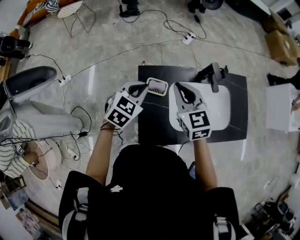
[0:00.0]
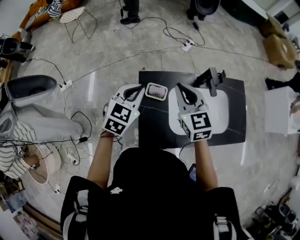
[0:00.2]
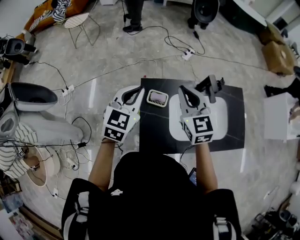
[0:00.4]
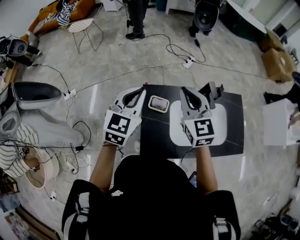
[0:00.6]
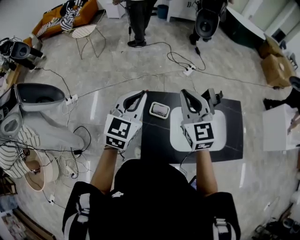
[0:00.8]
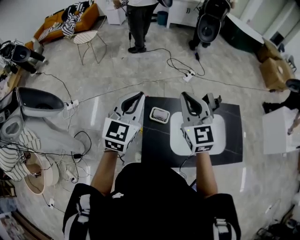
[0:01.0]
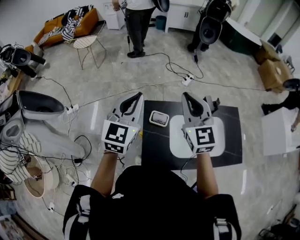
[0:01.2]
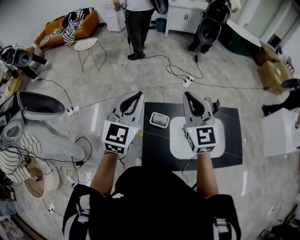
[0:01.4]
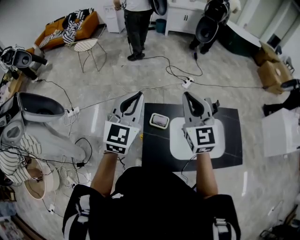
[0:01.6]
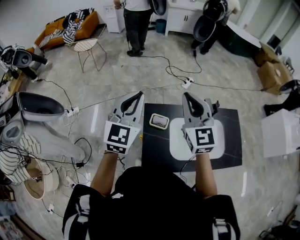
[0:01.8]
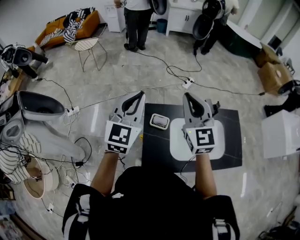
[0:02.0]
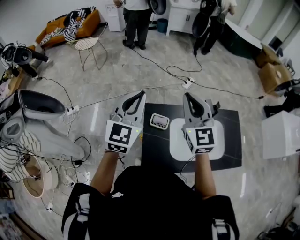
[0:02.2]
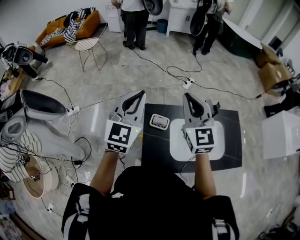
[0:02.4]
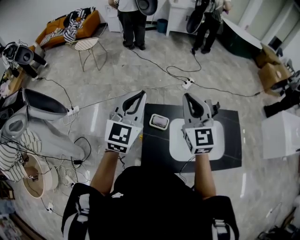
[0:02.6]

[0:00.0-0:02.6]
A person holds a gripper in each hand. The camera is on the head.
0:00.0 to 0:01.2: The grippers both shift upward by roughly 20 cm. The right gripper rotates roughly 20 degrees, while the left gripper angles its fingers upward, by approximately 30 degrees.
0:01.2 to 0:02.6: The grippers move only a little.

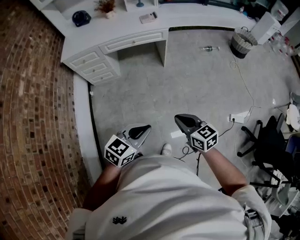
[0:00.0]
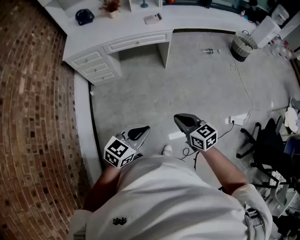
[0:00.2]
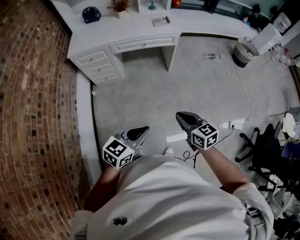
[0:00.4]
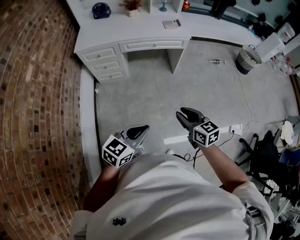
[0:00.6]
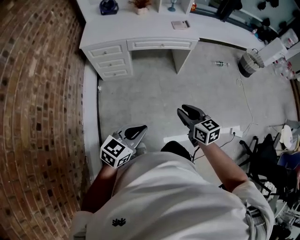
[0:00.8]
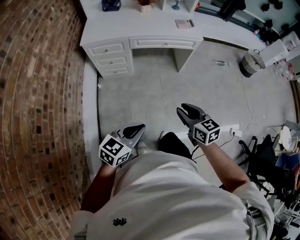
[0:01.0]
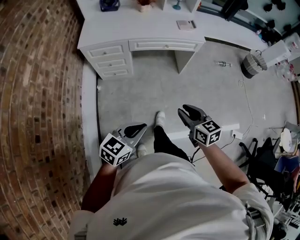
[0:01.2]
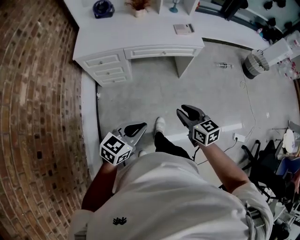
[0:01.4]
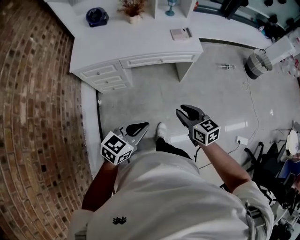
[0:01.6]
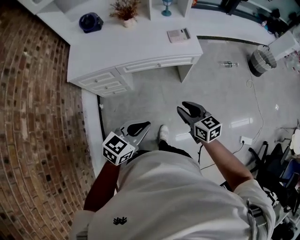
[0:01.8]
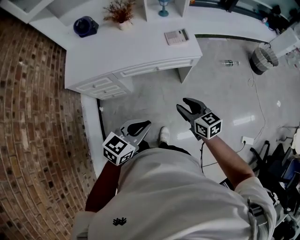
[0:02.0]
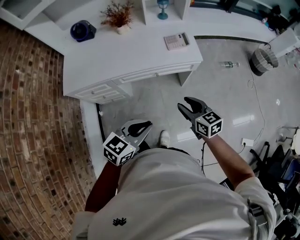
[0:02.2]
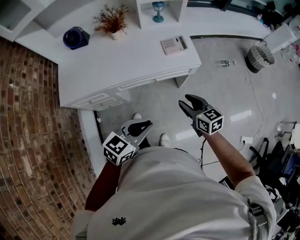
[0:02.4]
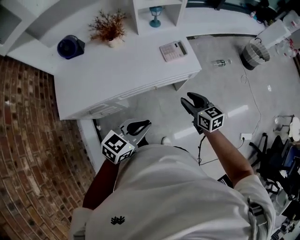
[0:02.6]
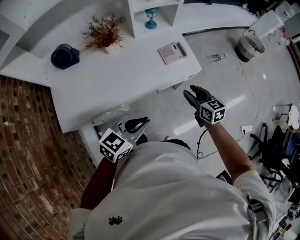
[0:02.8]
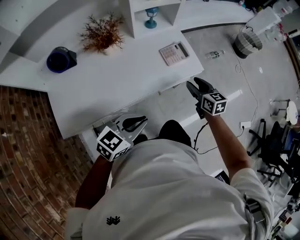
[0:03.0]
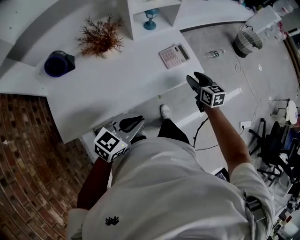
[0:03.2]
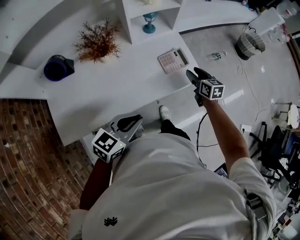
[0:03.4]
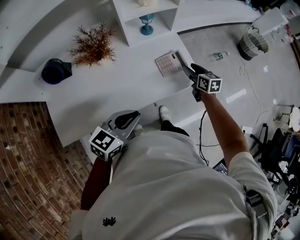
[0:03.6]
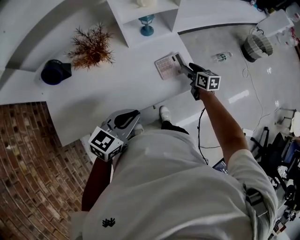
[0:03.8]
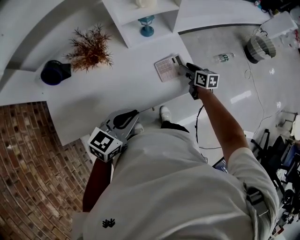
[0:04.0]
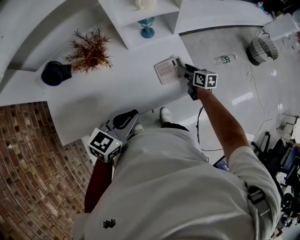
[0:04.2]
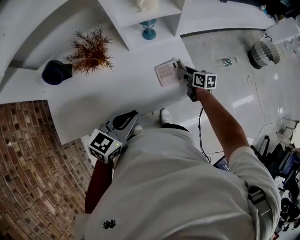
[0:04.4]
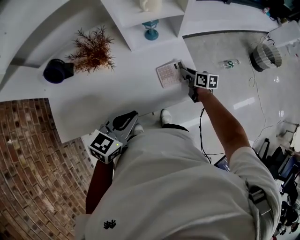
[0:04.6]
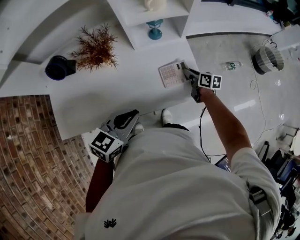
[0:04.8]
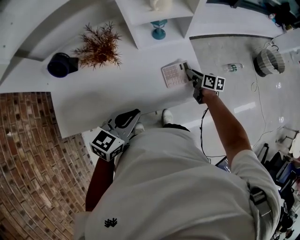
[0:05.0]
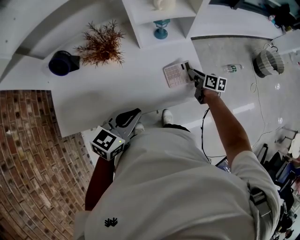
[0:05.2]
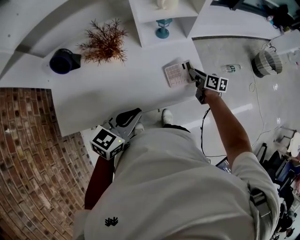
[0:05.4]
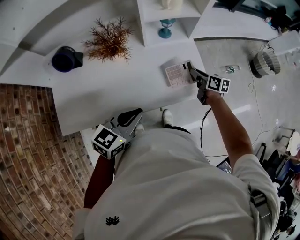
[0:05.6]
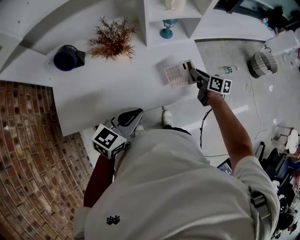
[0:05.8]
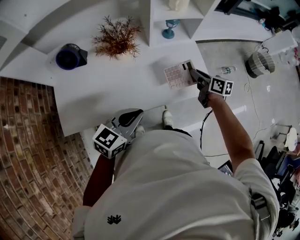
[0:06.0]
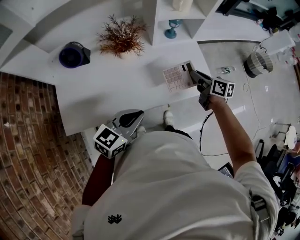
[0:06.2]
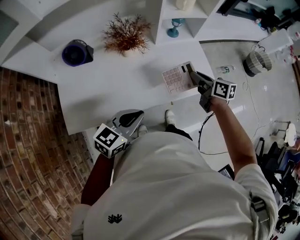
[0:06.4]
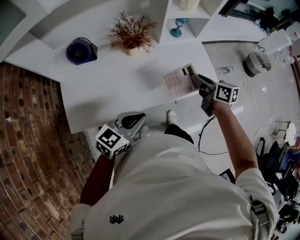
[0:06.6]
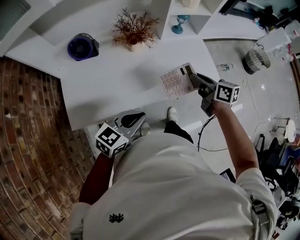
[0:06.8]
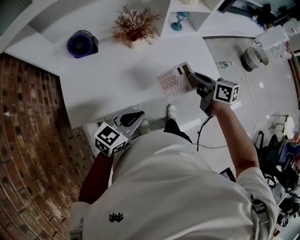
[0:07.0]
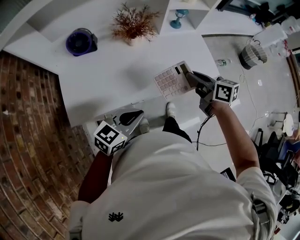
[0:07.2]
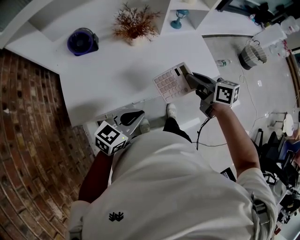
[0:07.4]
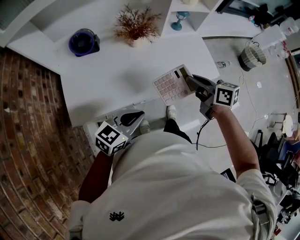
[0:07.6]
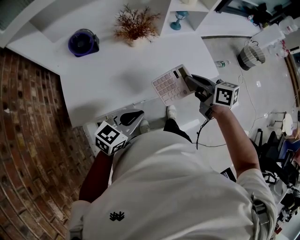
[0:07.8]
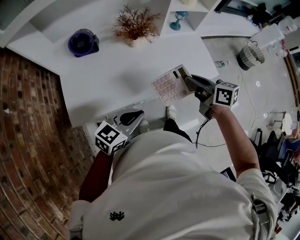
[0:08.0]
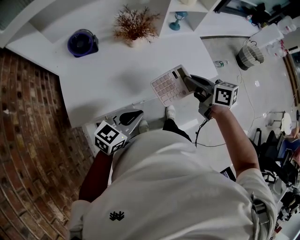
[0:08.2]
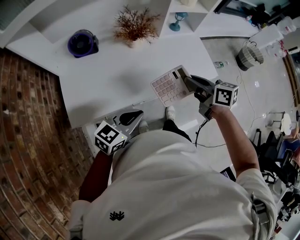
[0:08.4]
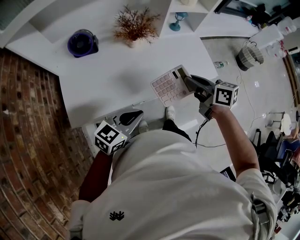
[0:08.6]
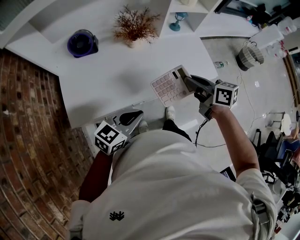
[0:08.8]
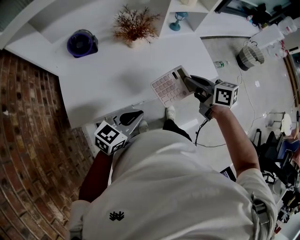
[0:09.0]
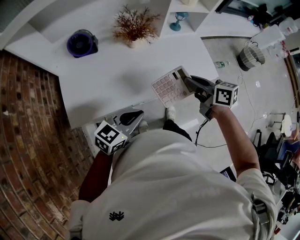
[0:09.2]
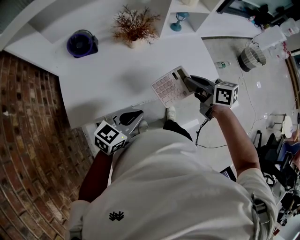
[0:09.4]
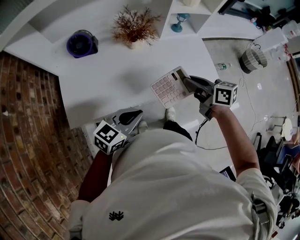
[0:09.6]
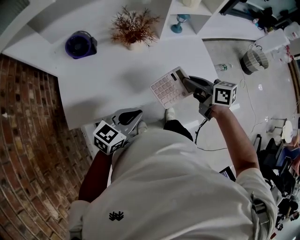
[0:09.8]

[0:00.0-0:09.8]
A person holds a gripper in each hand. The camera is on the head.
0:00.0 to 0:01.4: The two grippers go approximately 30 cm to the left and forward. The right gripper opens.
0:01.4 to 0:02.8: The two grippers travel together, forward, about 40 cm.
0:02.8 to 0:04.2: The two grippers go approximately 25 cm forward.
0:04.2 to 0:05.6: The right gripper ends up roughly 5 cm from where it was, and closes up.
0:05.6 to 0:07.0: The left gripper is displaced backward and to the left by some 20 cm. The right gripper is displaced backward, to the left and upward by roughly 30 cm.
0:07.0 to 0:08.4: The right gripper ends up some 5 cm from where it was.
0:08.4 to 0:09.8: The grippers make only small movements.

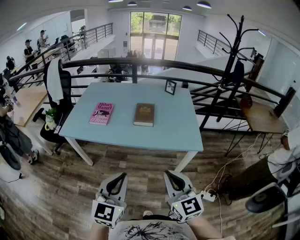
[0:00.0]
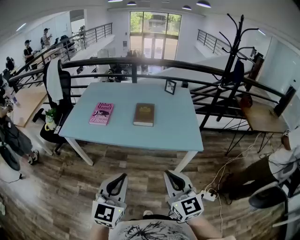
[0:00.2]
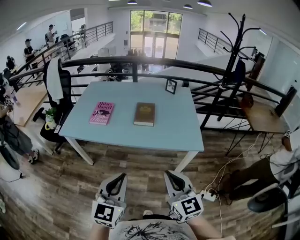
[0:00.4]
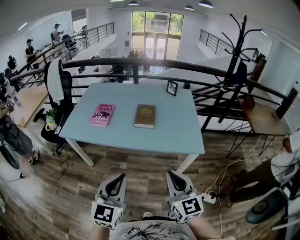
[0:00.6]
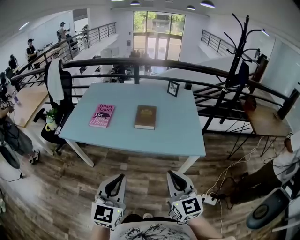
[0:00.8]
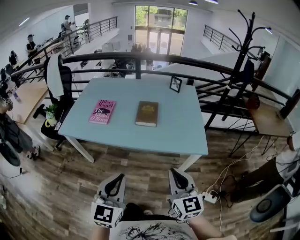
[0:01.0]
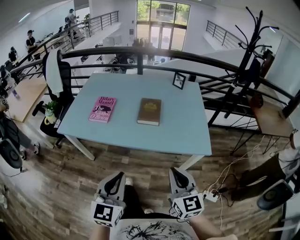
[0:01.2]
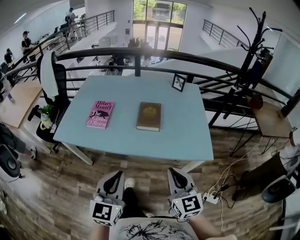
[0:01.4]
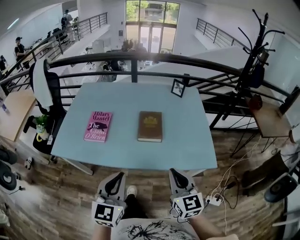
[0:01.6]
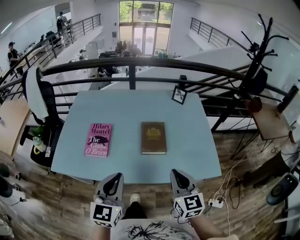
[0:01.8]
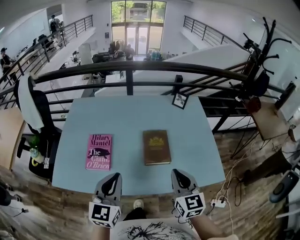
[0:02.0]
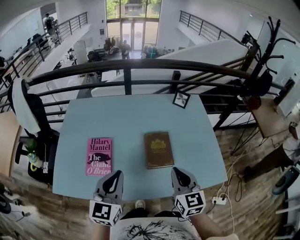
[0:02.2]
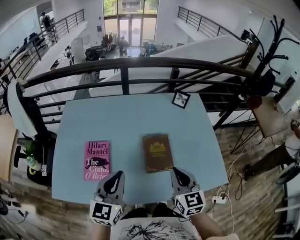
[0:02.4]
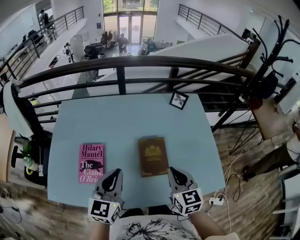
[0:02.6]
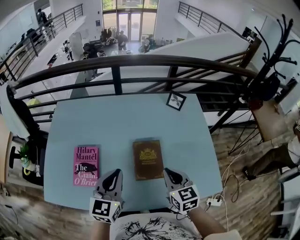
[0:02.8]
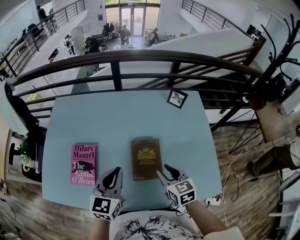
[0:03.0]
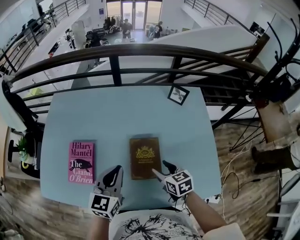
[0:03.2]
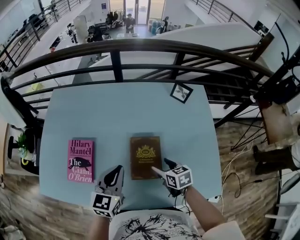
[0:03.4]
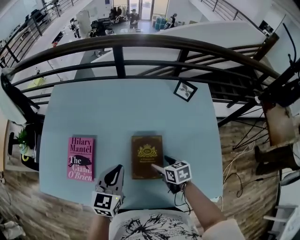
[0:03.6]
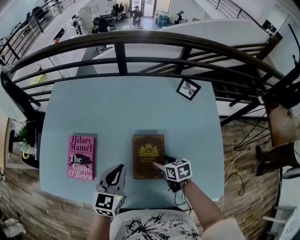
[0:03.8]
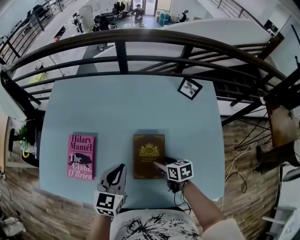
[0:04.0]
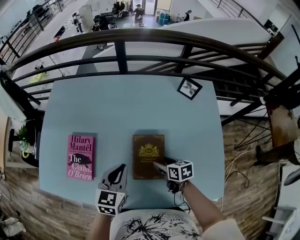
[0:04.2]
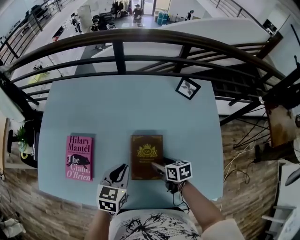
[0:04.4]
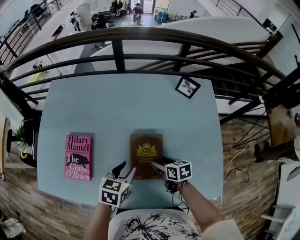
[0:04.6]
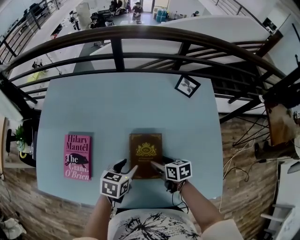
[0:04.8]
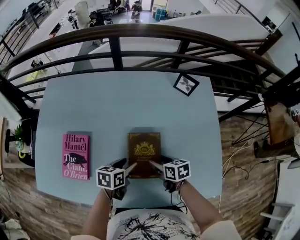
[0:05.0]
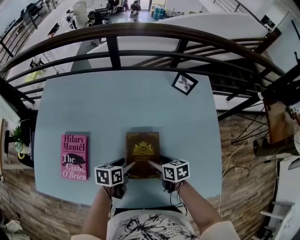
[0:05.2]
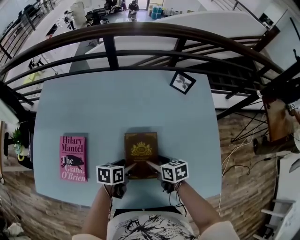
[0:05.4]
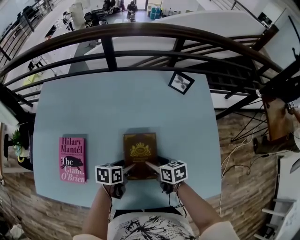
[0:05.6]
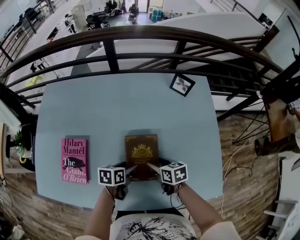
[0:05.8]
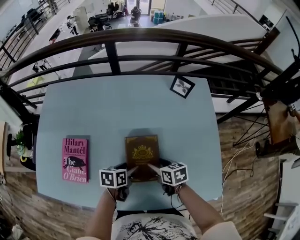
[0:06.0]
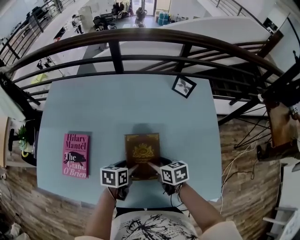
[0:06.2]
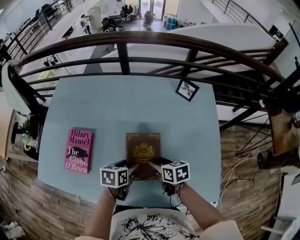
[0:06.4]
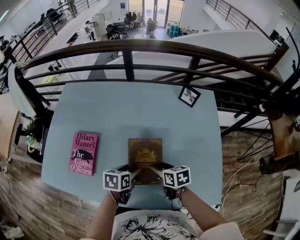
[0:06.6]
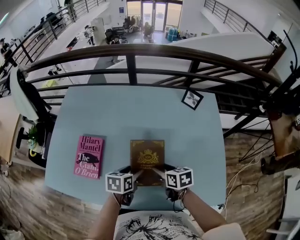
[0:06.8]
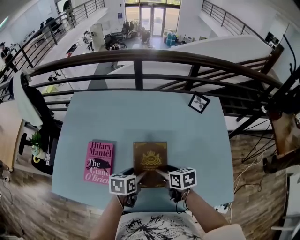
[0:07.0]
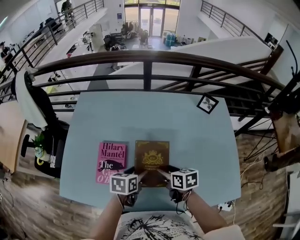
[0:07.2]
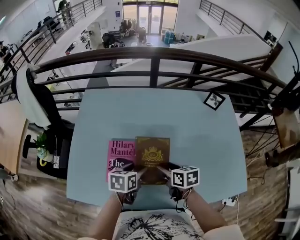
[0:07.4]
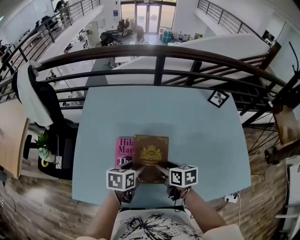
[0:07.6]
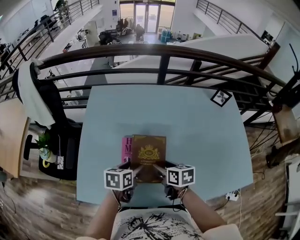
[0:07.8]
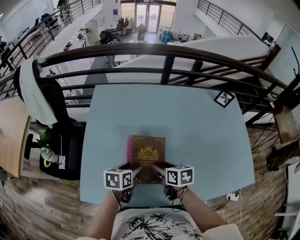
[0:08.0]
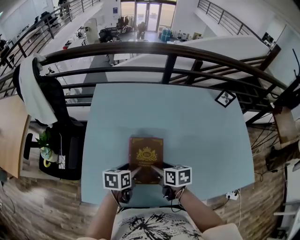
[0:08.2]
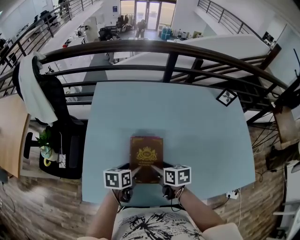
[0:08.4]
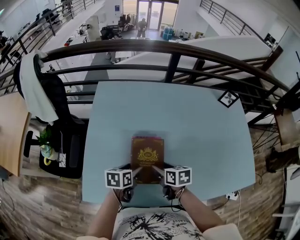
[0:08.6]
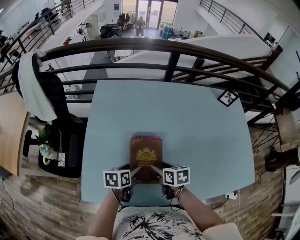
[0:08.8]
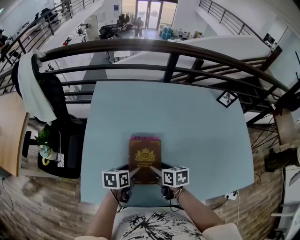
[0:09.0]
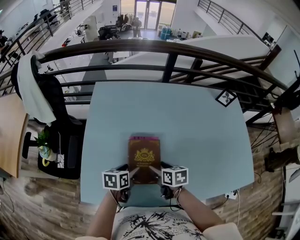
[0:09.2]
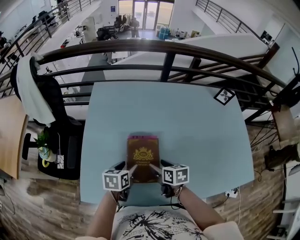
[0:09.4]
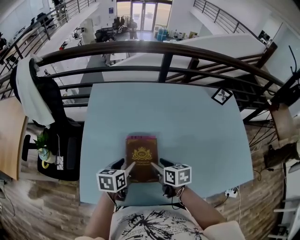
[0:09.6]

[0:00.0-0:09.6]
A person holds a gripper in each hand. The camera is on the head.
0:00.0 to 0:01.6: Both grippers travel together forward, about 25 cm.
0:01.6 to 0:03.2: The right gripper moves forward and downward, about 35 cm, rotates approximately 40 degrees, and opens up, while the left gripper moves forward, roughly 35 cm.
0:03.2 to 0:04.8: The left gripper shifts roughly 15 cm downward, tilts its fingers approximately 30 degrees downward, and opens up, while the right gripper heads downward, covering about 10 cm, and rotates some 20 degrees.
0:06.4 to 0:08.0: The two grippers go some 35 cm to the left.
0:08.0 to 0:09.6: The grippers move only a little.

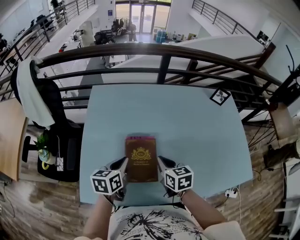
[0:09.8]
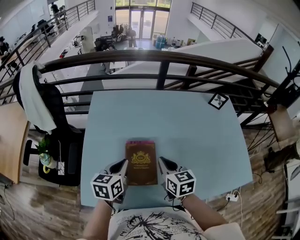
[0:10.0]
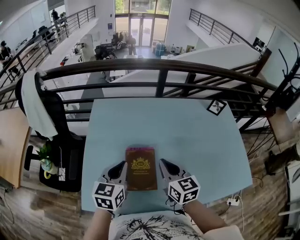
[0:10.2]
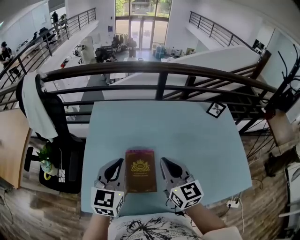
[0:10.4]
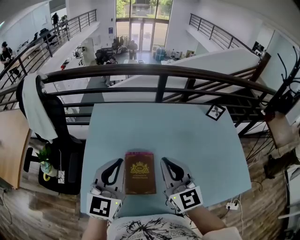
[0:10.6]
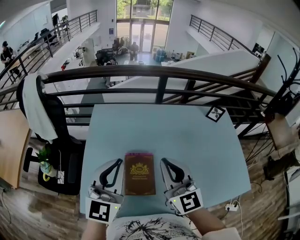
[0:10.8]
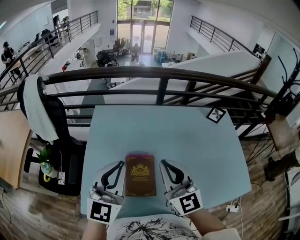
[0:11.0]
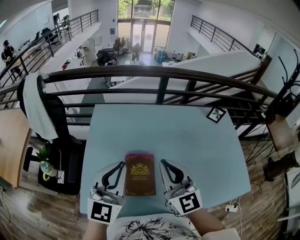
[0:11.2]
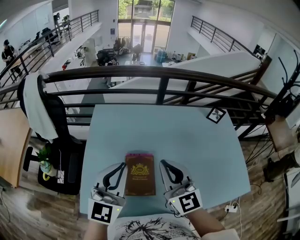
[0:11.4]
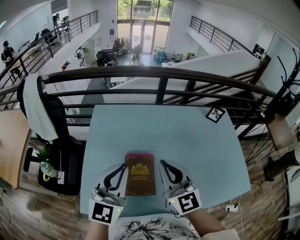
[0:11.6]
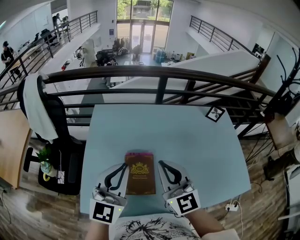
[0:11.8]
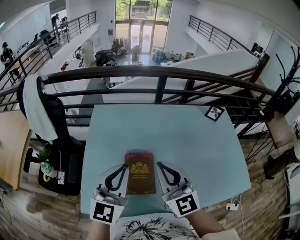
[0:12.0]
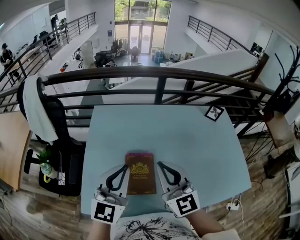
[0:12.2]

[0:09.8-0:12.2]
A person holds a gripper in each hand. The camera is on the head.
0:09.8 to 0:11.0: The grippers both shift upward by some 25 cm. The right gripper points its fingers approximately 40 degrees further upward. Meanwhile the left gripper angles its fingers upward, by some 30 degrees.
0:11.0 to 0:12.2: The grippers stay close to where they were, moving slightly.
